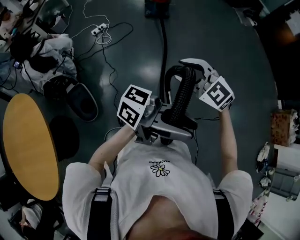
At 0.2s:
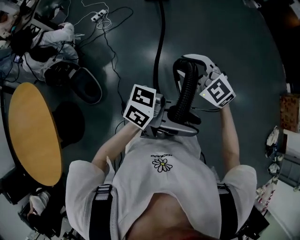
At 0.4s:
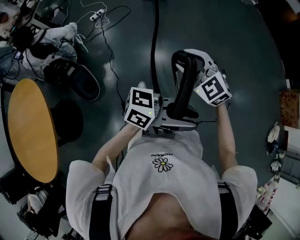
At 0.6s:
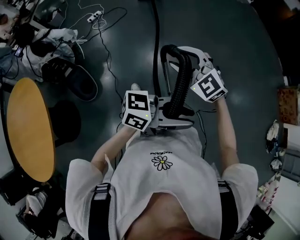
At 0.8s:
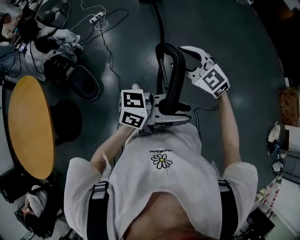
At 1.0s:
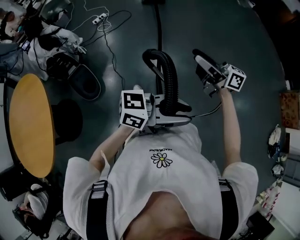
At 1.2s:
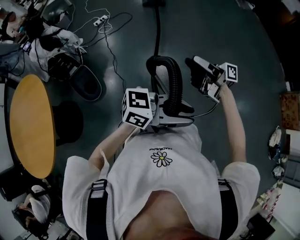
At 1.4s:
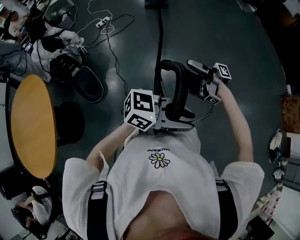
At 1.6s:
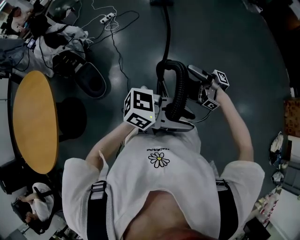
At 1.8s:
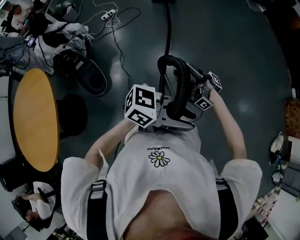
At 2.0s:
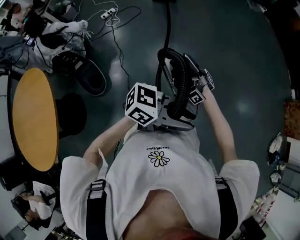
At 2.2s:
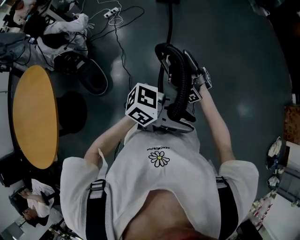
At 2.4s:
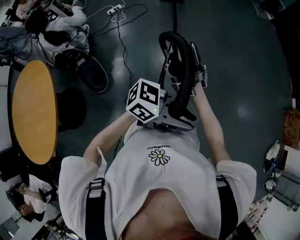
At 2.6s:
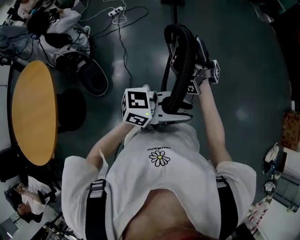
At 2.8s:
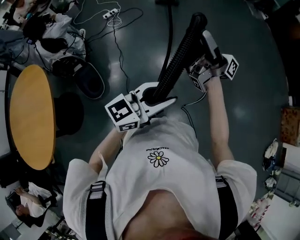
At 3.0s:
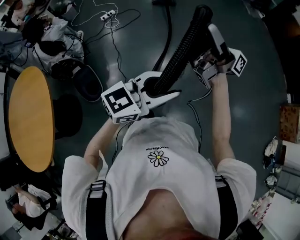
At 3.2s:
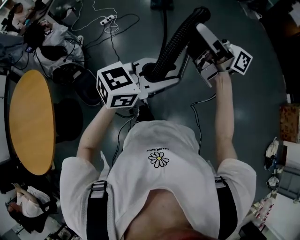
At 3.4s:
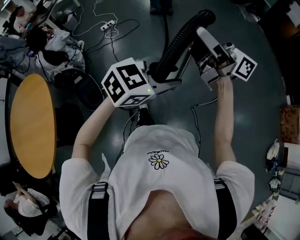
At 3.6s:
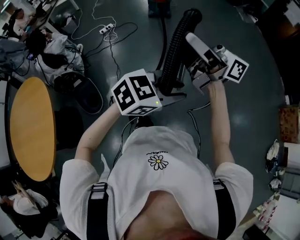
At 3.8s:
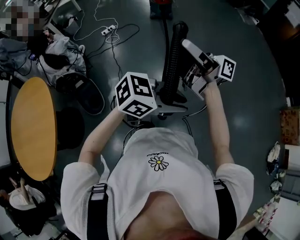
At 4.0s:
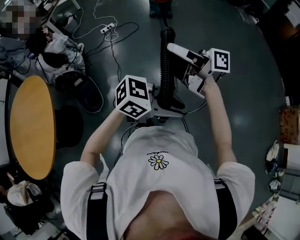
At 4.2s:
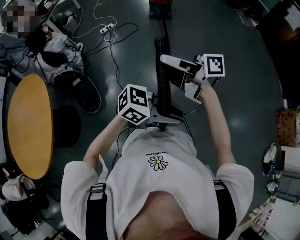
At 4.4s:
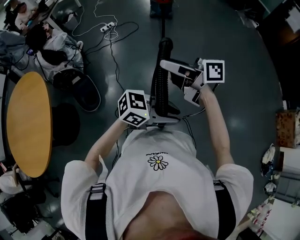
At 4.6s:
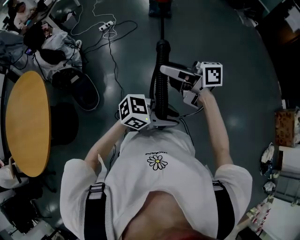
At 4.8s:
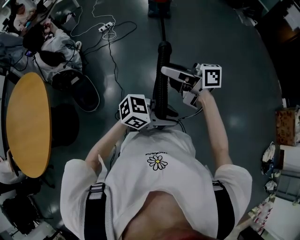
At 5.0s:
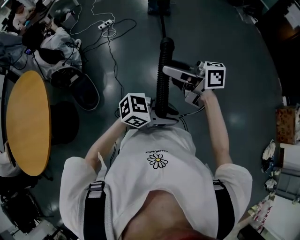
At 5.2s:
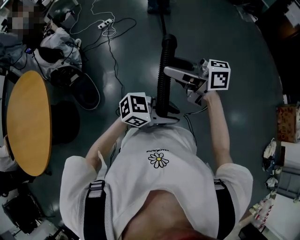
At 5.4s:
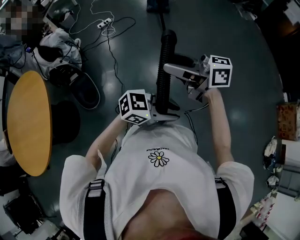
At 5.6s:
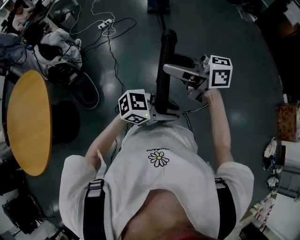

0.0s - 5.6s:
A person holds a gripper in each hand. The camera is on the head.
0.0s - 1.4s: The left gripper moves some 25 cm, and rotates roughly 30 degrees.
1.4s - 2.8s: The left gripper moves about 15 cm, and rotates about 40 degrees.
2.8s - 4.2s: The left gripper moves approximately 10 cm, and changes its angle by about 40 degrees.
4.2s - 5.6s: The left gripper travels downward by approximately 5 cm.

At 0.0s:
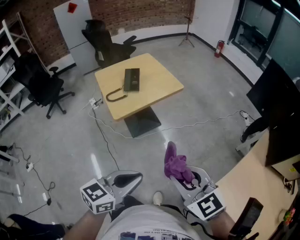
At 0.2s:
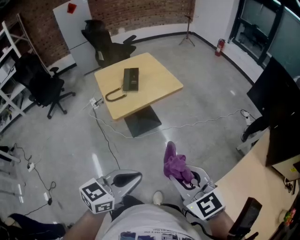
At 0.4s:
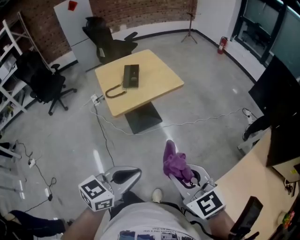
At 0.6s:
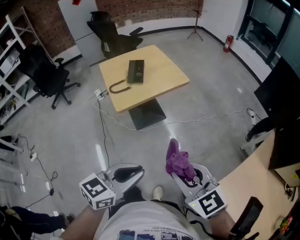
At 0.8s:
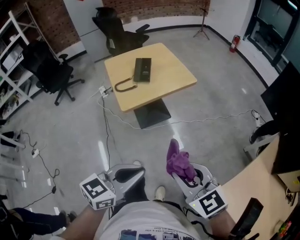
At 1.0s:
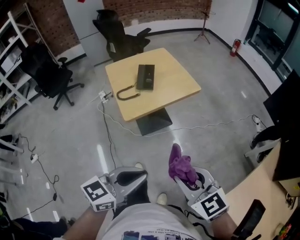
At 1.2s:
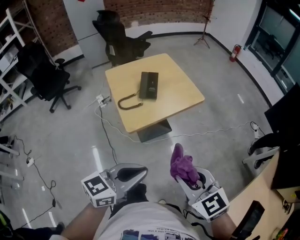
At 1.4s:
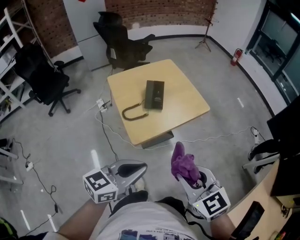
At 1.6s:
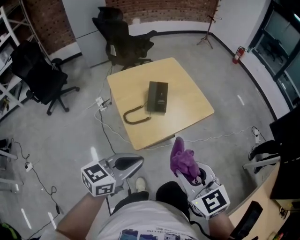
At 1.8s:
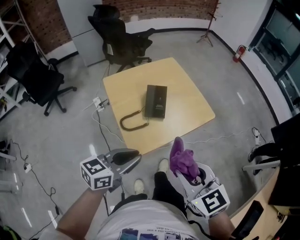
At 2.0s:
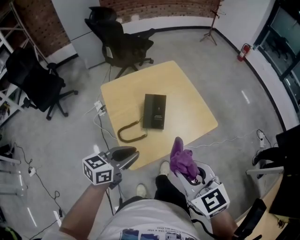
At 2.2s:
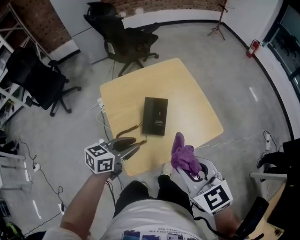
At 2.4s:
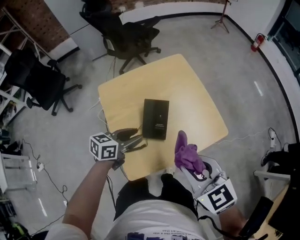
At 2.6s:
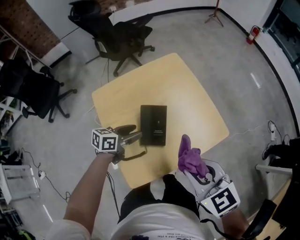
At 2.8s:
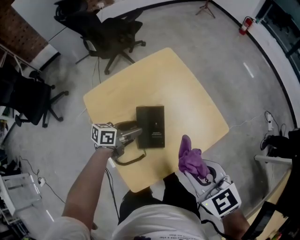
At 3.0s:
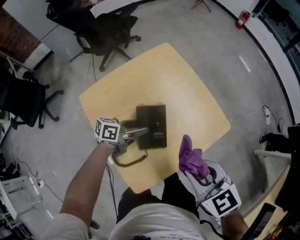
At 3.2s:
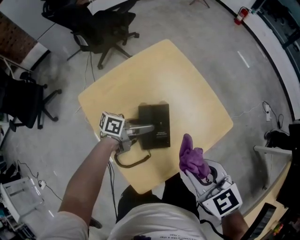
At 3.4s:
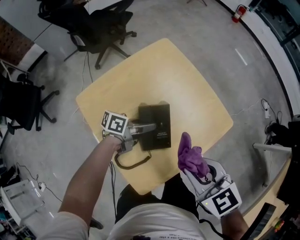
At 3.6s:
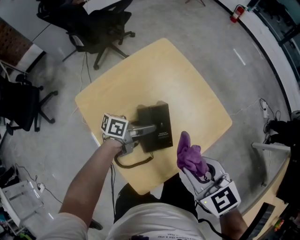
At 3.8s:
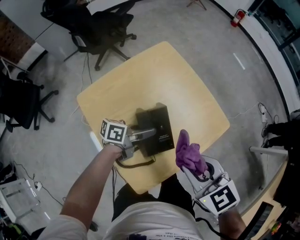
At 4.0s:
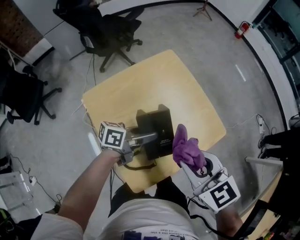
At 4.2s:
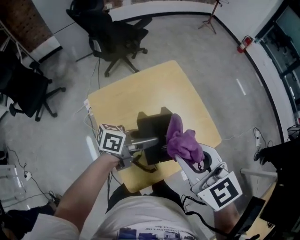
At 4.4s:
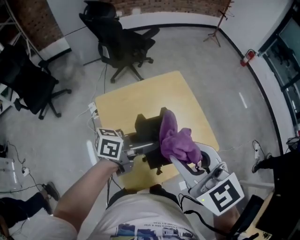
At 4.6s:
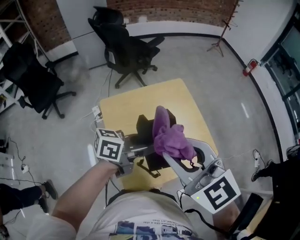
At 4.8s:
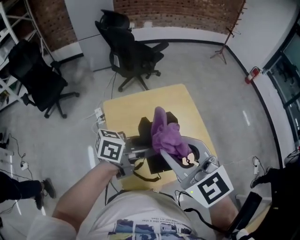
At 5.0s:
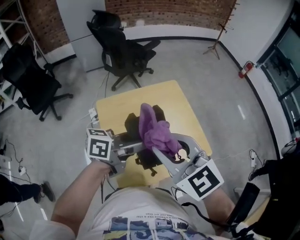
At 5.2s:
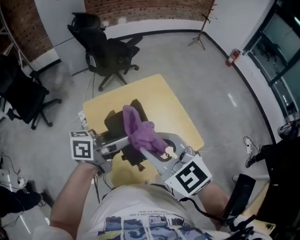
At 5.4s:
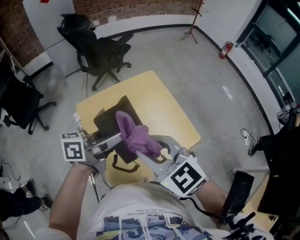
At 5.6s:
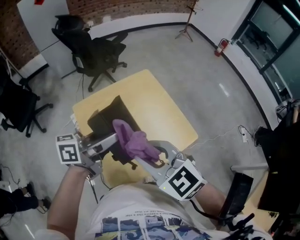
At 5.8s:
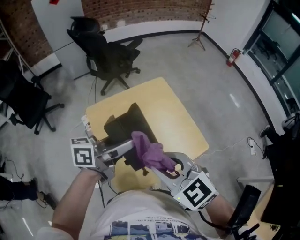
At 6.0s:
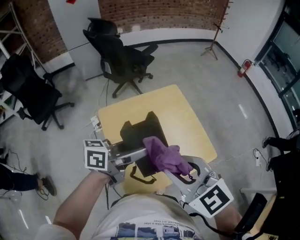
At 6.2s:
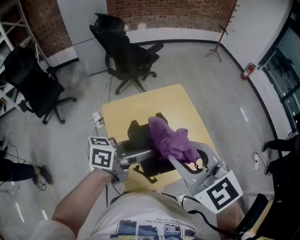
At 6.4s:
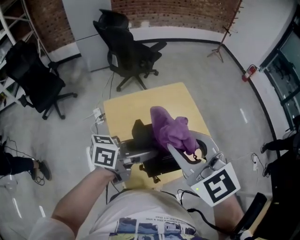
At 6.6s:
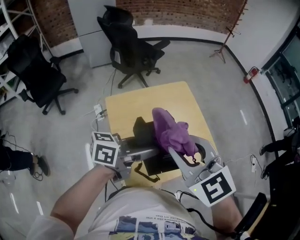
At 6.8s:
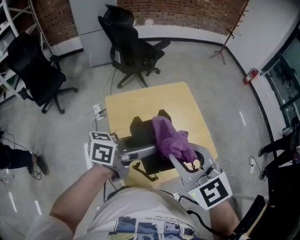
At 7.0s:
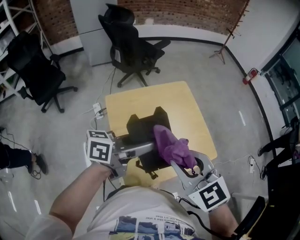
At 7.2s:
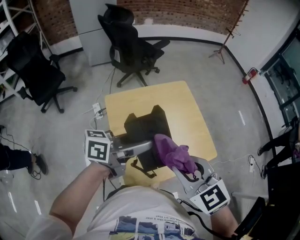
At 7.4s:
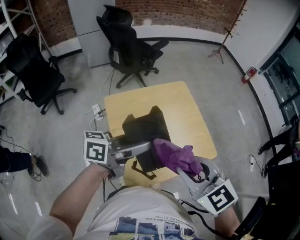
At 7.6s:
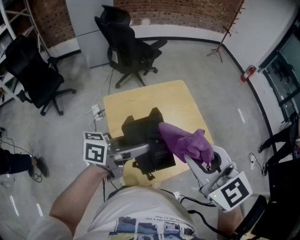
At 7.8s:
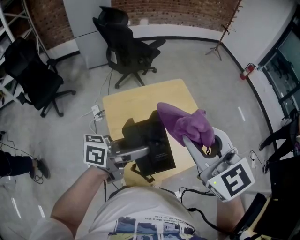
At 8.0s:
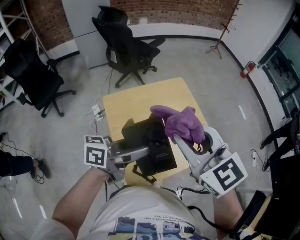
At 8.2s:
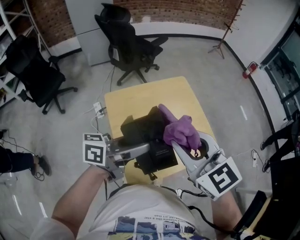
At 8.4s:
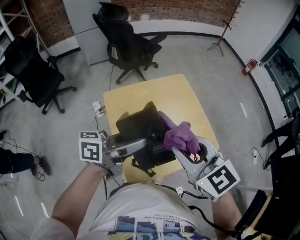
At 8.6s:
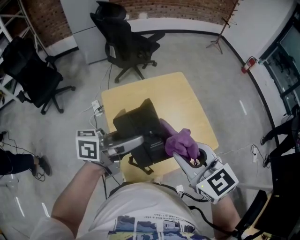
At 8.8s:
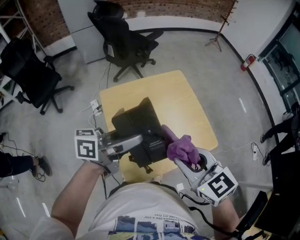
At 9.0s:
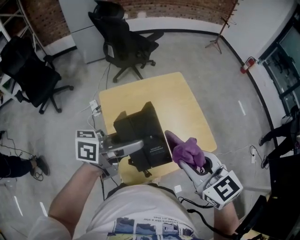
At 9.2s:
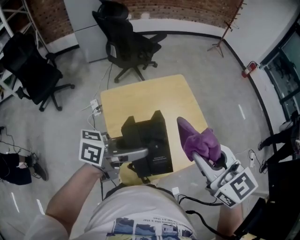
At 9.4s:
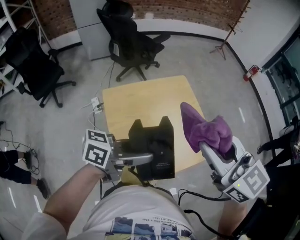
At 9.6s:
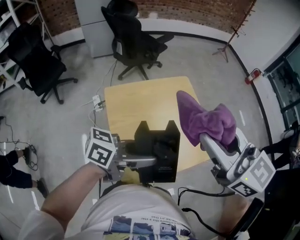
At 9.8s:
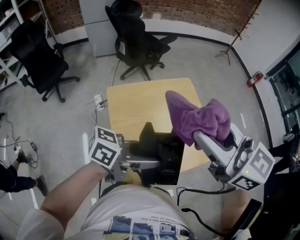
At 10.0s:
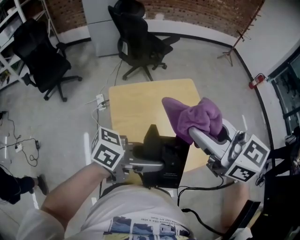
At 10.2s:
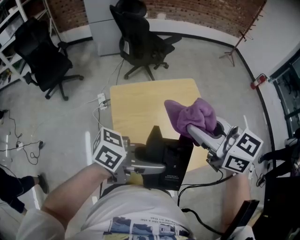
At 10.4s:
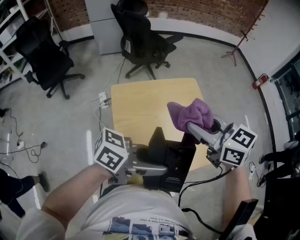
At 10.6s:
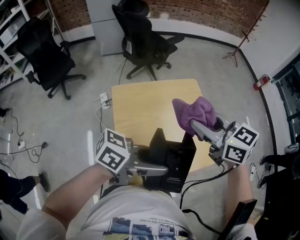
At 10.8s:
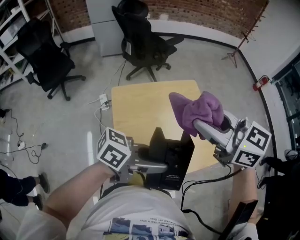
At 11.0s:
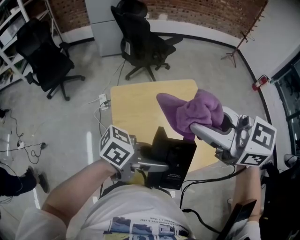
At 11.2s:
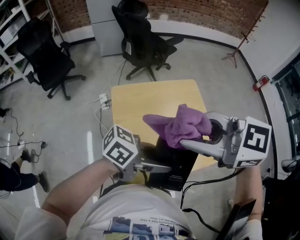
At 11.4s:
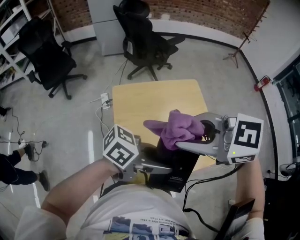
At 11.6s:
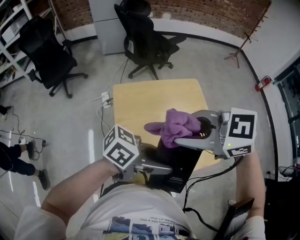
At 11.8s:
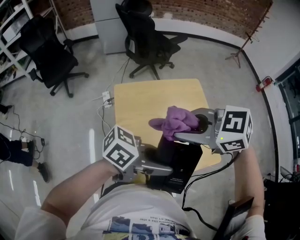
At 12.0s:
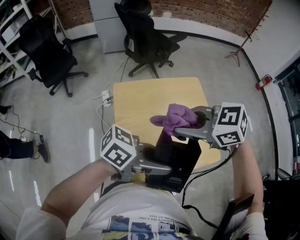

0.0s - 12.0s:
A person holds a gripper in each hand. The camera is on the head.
0.0s - 1.6s: Both grippers move forward and to the left, approximately 25 cm.
1.6s - 3.0s: The right gripper heads forward, covering roughly 20 cm; the left gripper goes roughly 40 cm forward and downward, rotates roughly 40 degrees, and opens up.
3.0s - 4.4s: The left gripper moves upward, about 20 cm, while the right gripper shifts some 15 cm upward and to the left, and changes its angle by some 30 degrees.
4.4s - 6.0s: The left gripper moves upward, some 5 cm; the right gripper travels downward and back again, some 5 cm each way.
6.0s - 7.6s: The right gripper goes up and down, some 10 cm each way, reversing 2 times.
7.6s - 9.0s: The right gripper heads downward, covering some 10 cm.
9.0s - 10.4s: The right gripper goes upward and returns, approximately 15 cm each way. Meanwhile the left gripper ends up about 10 cm from where it was.
10.4s - 12.0s: The right gripper reaches some 10 cm upward, then returns, and turns by about 30 degrees.

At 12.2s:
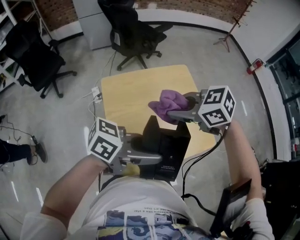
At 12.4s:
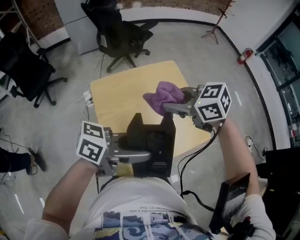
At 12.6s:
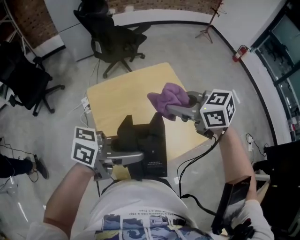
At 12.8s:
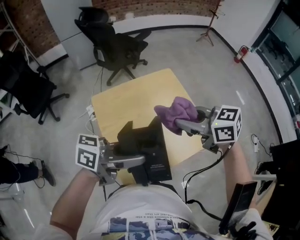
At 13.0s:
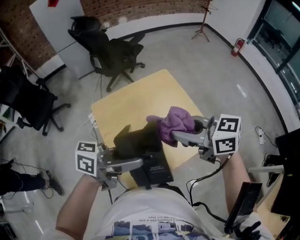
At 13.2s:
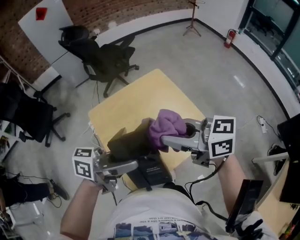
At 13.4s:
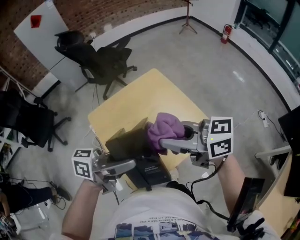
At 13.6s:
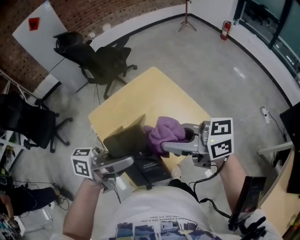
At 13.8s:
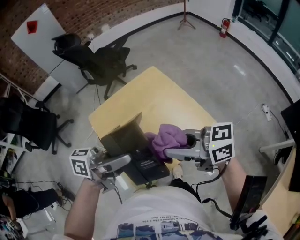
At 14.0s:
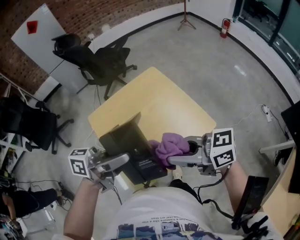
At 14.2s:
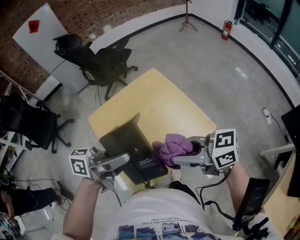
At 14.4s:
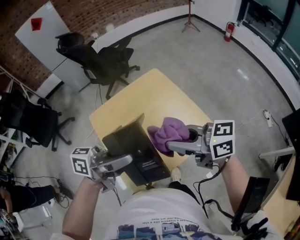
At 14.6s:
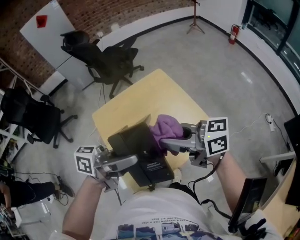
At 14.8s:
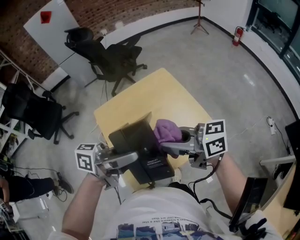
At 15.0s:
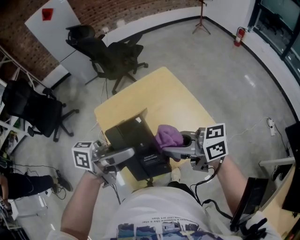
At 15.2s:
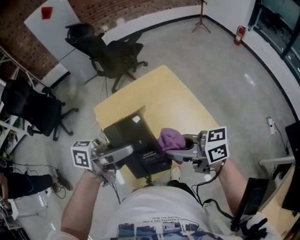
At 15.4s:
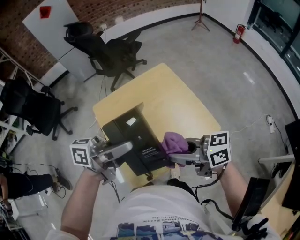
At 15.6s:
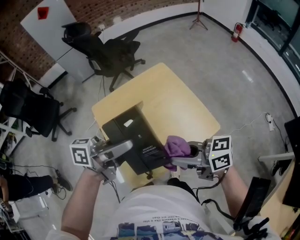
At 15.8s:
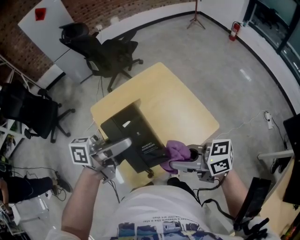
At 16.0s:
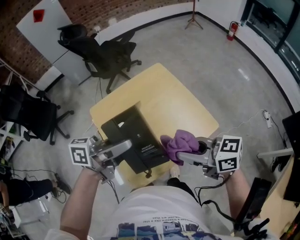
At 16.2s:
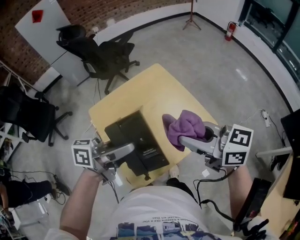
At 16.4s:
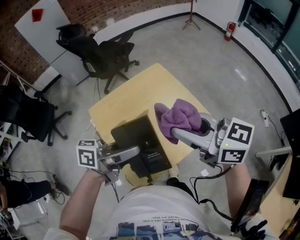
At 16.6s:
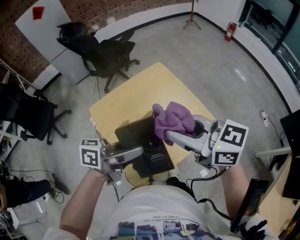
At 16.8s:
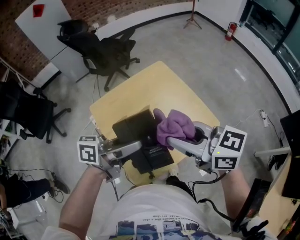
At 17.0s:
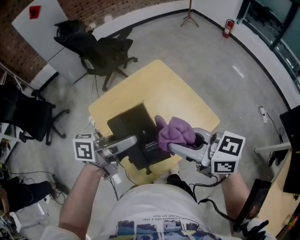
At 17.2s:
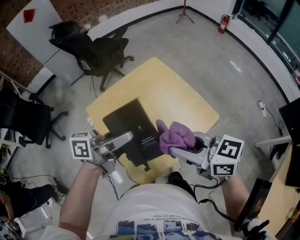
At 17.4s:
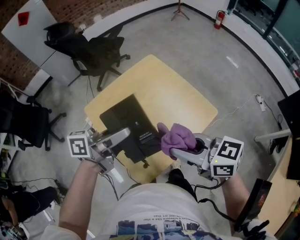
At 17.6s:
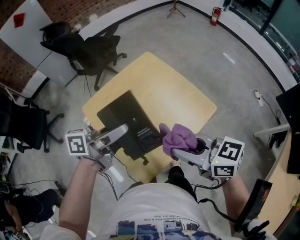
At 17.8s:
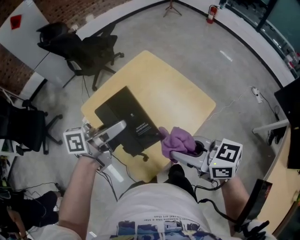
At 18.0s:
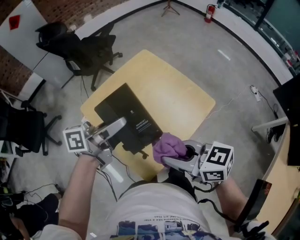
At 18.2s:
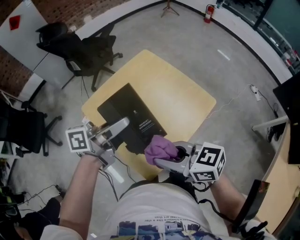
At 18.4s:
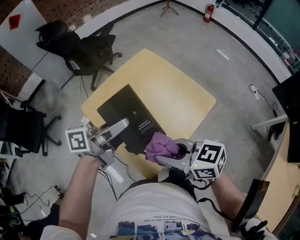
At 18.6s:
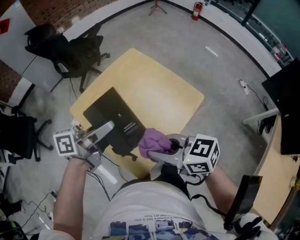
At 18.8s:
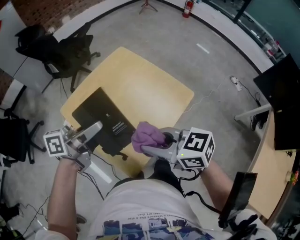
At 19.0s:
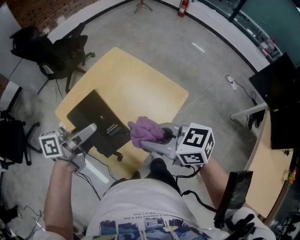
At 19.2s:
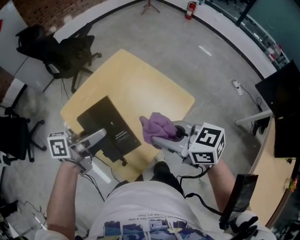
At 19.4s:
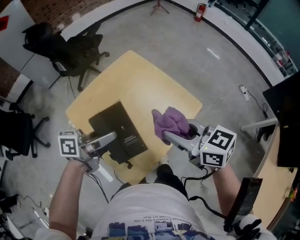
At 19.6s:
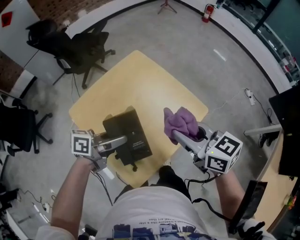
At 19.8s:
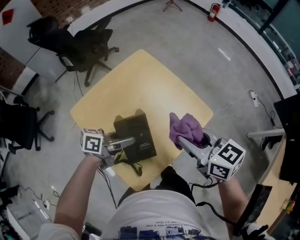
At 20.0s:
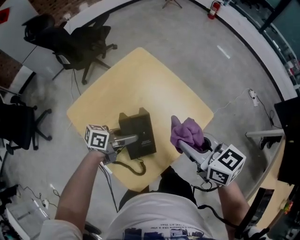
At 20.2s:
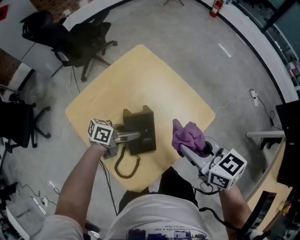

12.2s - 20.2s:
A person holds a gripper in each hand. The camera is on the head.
12.2s - 13.8s: The right gripper changes place by approximately 15 cm, and angles its fingers upward, by roughly 30 degrees. The left gripper ends up approximately 5 cm from where it was.
13.8s - 15.4s: The right gripper heads downward, covering about 5 cm.
15.4s - 17.0s: The right gripper goes about 5 cm upward, and turns by about 30 degrees.
17.0s - 18.6s: The right gripper shifts by about 10 cm.
18.6s - 20.2s: The left gripper moves downward, roughly 20 cm, and turns by approximately 30 degrees; the right gripper changes place by some 15 cm, and swivels approximately 20 degrees.
